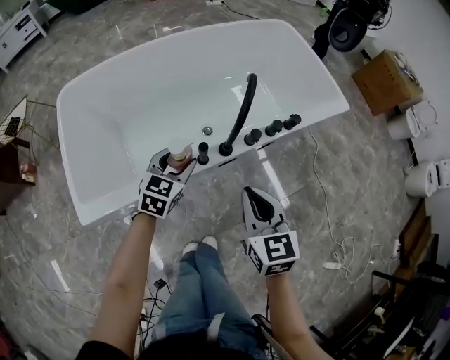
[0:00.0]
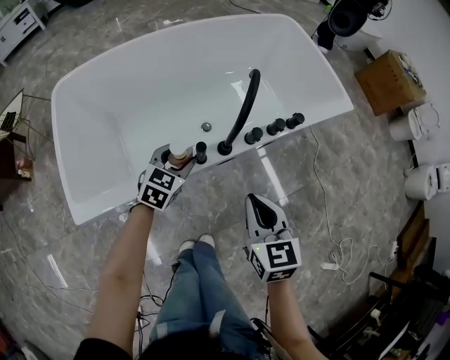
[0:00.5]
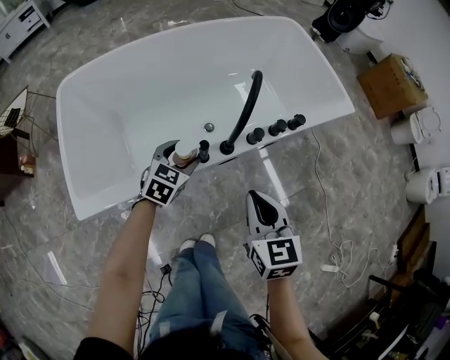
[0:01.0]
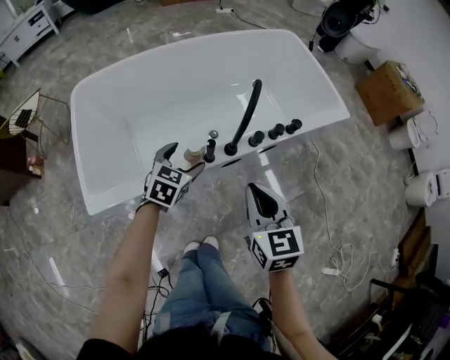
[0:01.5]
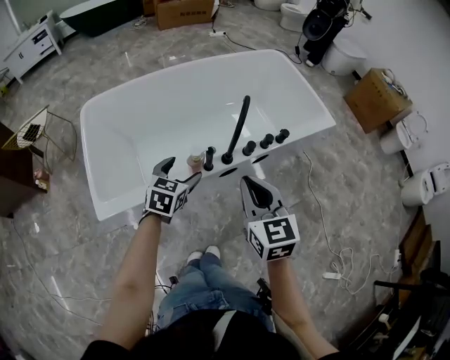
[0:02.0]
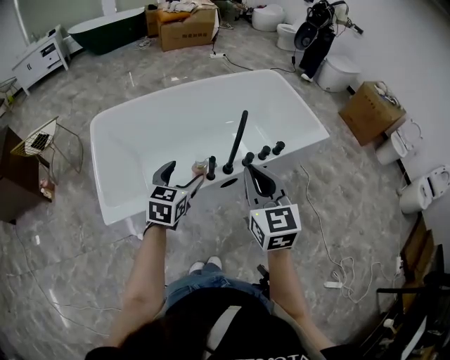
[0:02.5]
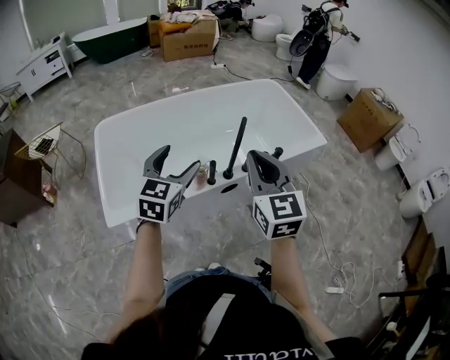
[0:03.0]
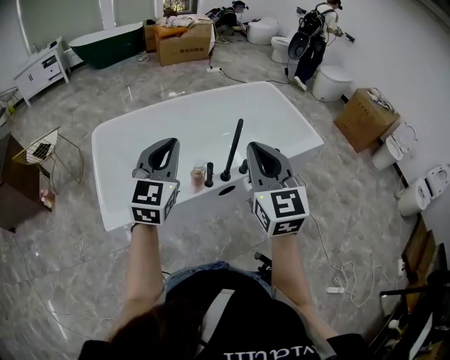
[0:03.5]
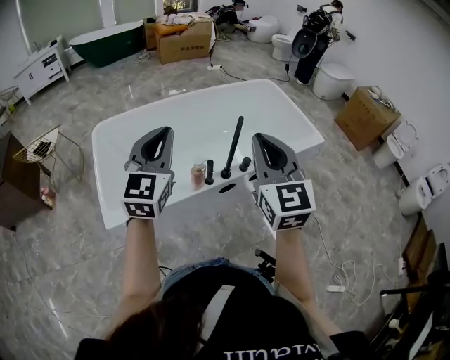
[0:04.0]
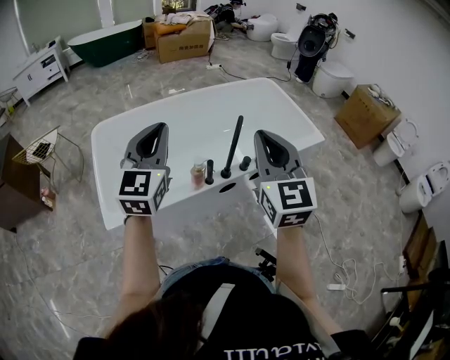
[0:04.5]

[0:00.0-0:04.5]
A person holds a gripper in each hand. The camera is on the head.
0:00.0 to 0:02.0: The right gripper shifts some 10 cm upward. Meanwhile the left gripper travels upward and backward by some 10 cm, and opens up.
0:02.0 to 0:04.5: The right gripper is displaced upward by about 20 cm, and turns by roughly 20 degrees, while the left gripper travels upward by roughly 30 cm, angles its fingers upward, by about 40 degrees, and closes up.

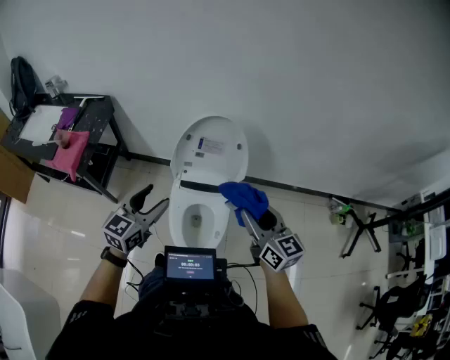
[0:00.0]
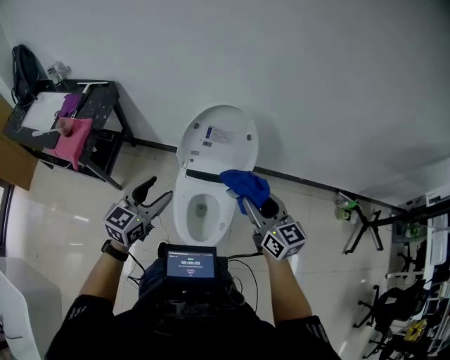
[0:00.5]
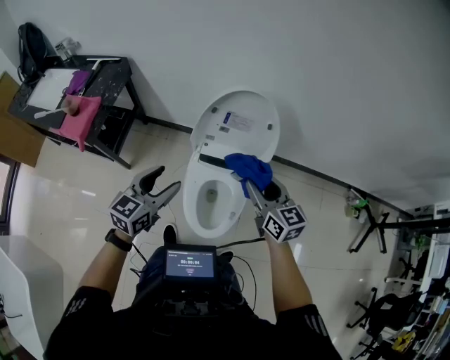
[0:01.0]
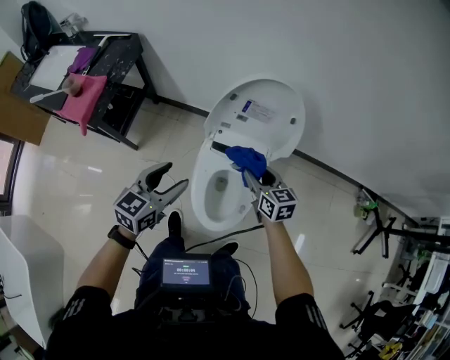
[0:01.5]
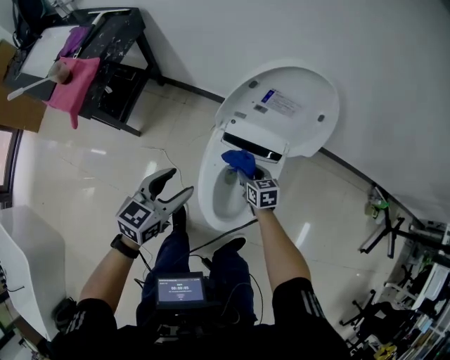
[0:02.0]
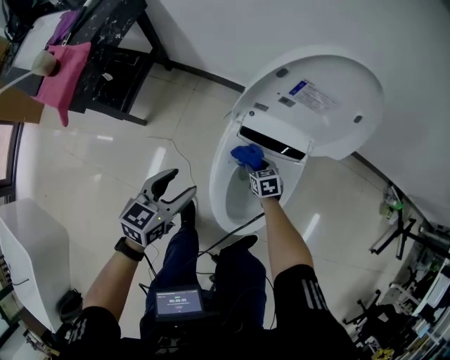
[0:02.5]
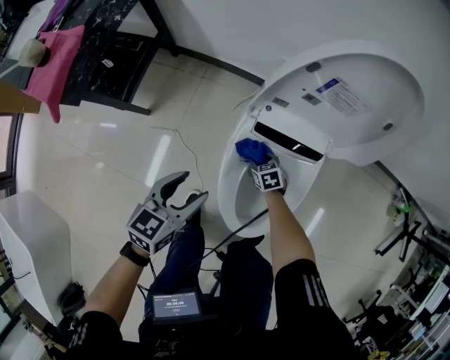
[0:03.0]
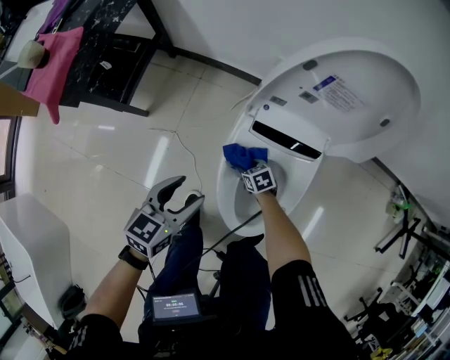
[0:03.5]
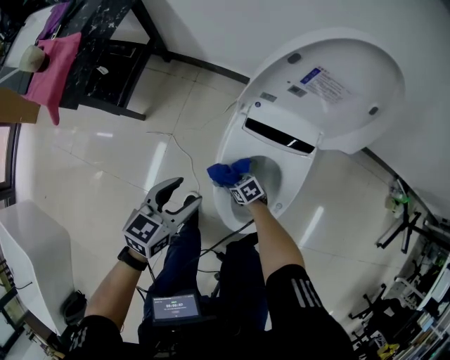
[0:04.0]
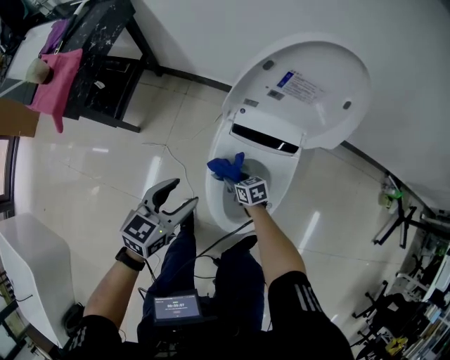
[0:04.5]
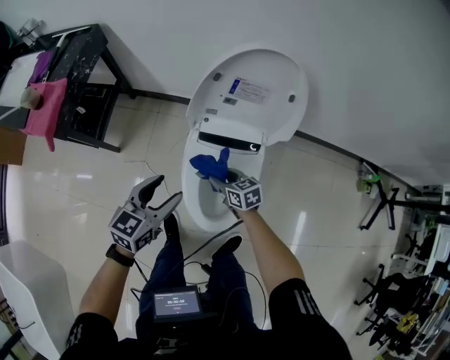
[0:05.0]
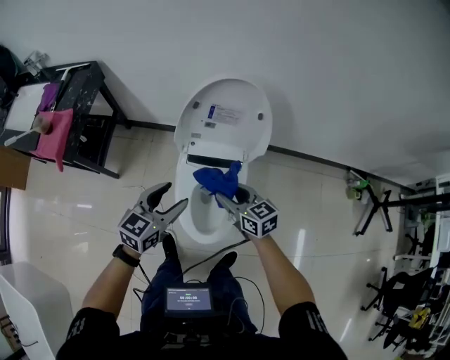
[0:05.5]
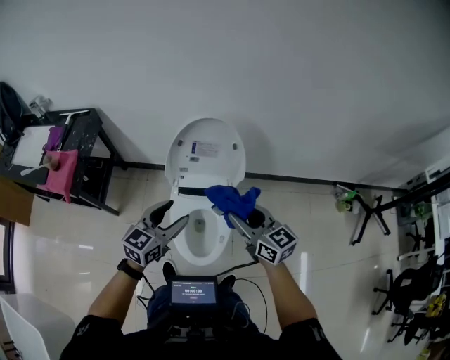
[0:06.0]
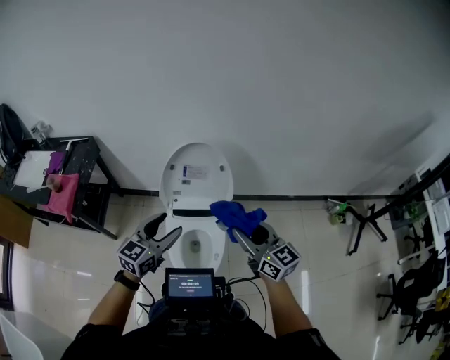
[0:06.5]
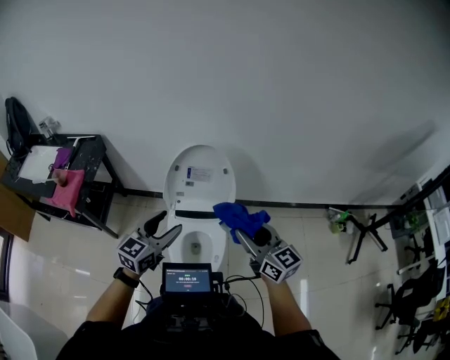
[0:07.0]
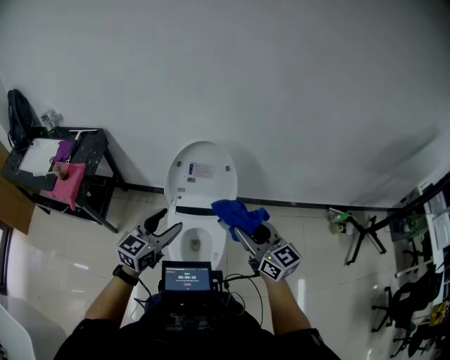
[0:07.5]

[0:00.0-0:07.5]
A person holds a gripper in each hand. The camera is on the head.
0:00.0 to 0:02.0: The right gripper goes roughly 50 cm downward, and tilts its fingers some 40 degrees downward; the left gripper heads downward, covering about 20 cm.
0:02.0 to 0:04.0: The right gripper goes some 25 cm downward, and swivels some 30 degrees, while the left gripper moves downward, approximately 15 cm.
0:04.0 to 0:05.5: The left gripper is displaced upward by some 20 cm. Meanwhile the right gripper shifts approximately 50 cm upward, and angles its fingers upward, by some 30 degrees.
0:05.5 to 0:07.5: The left gripper shifts some 15 cm upward. Meanwhile the right gripper is displaced upward and to the right by roughly 30 cm, and rotates about 30 degrees.

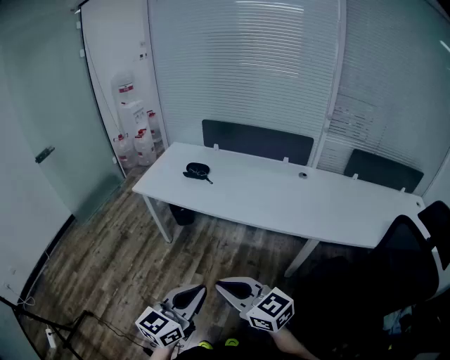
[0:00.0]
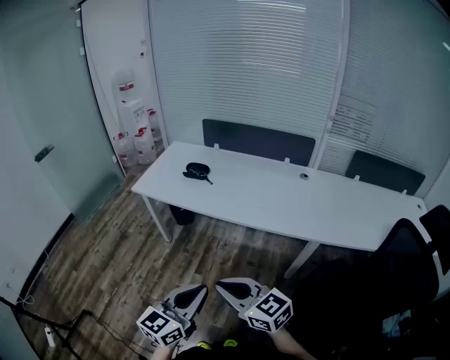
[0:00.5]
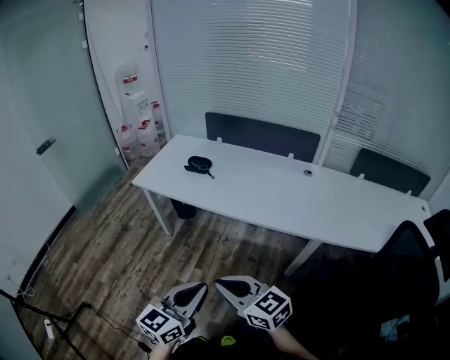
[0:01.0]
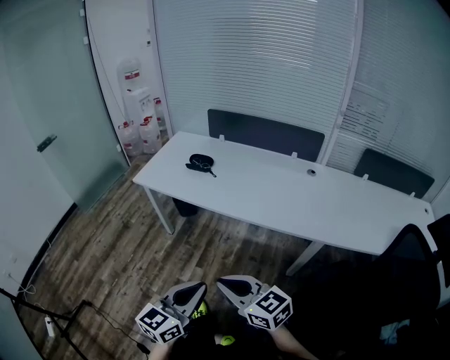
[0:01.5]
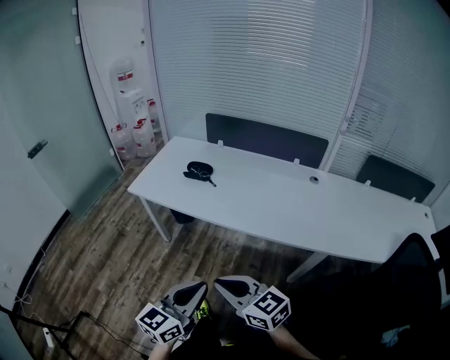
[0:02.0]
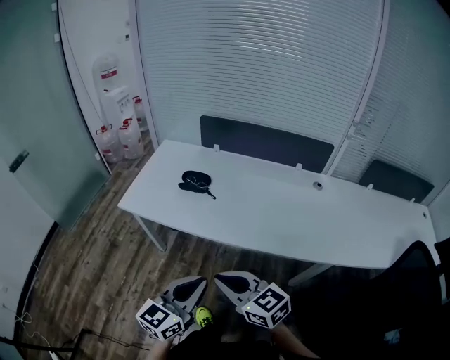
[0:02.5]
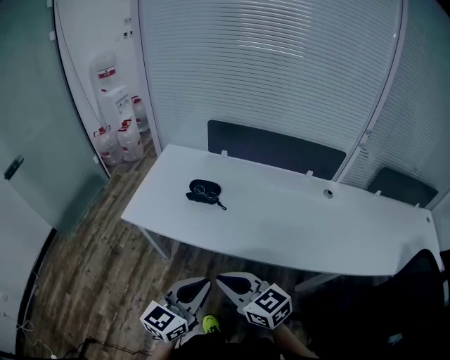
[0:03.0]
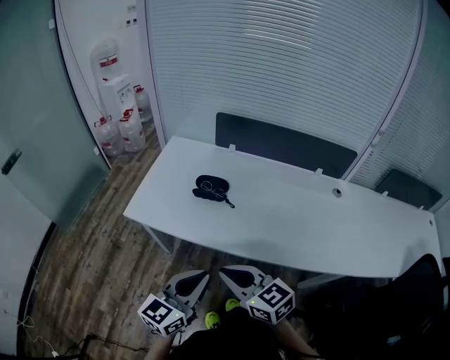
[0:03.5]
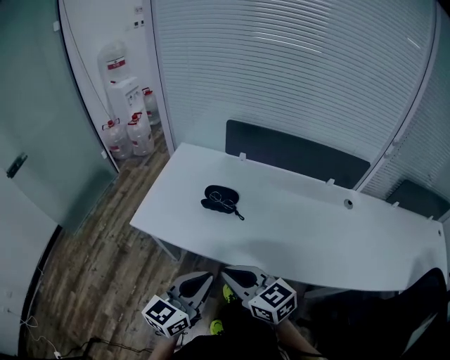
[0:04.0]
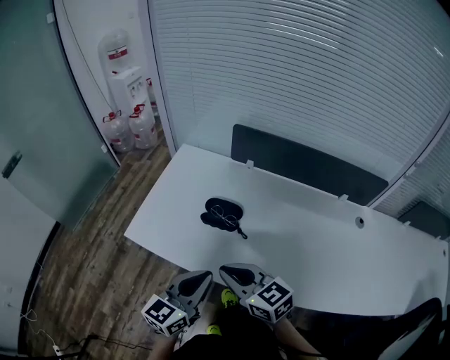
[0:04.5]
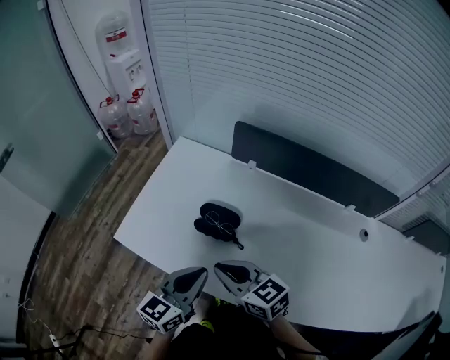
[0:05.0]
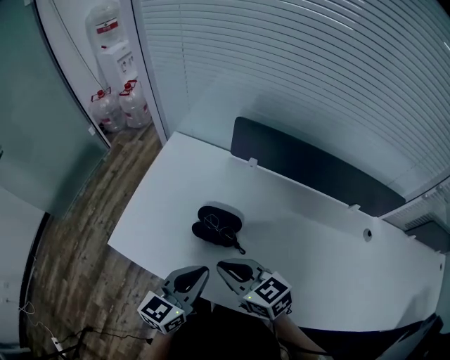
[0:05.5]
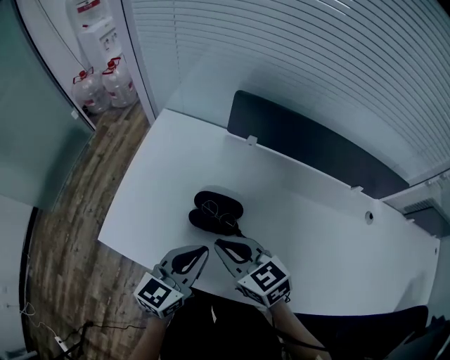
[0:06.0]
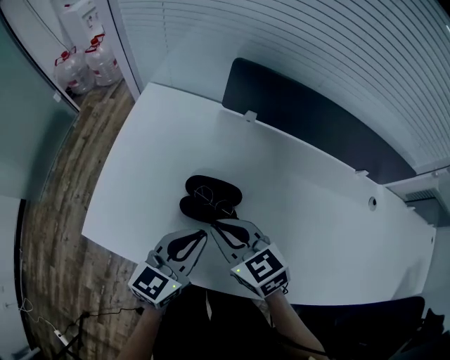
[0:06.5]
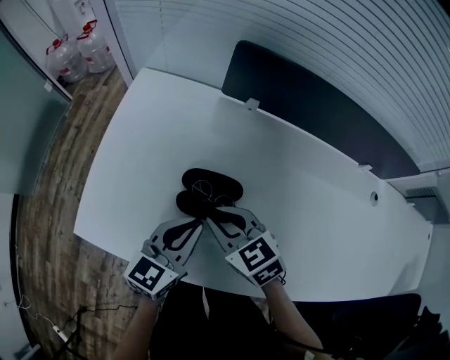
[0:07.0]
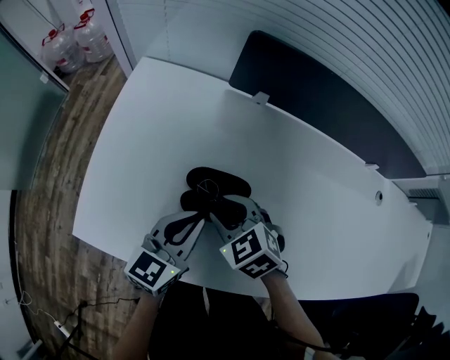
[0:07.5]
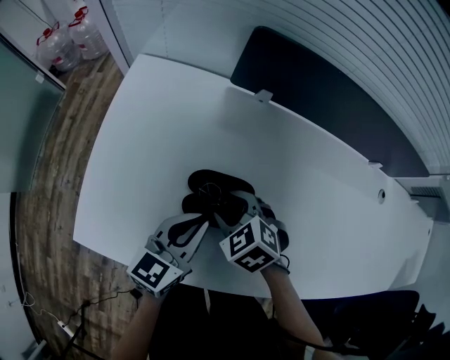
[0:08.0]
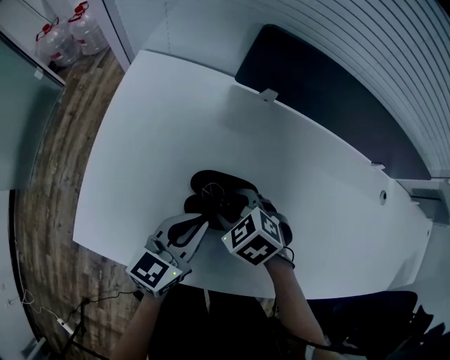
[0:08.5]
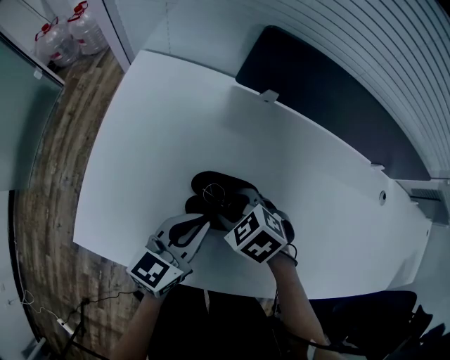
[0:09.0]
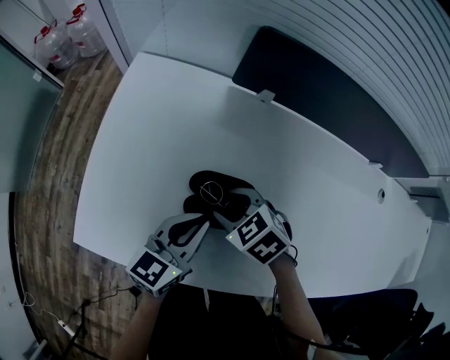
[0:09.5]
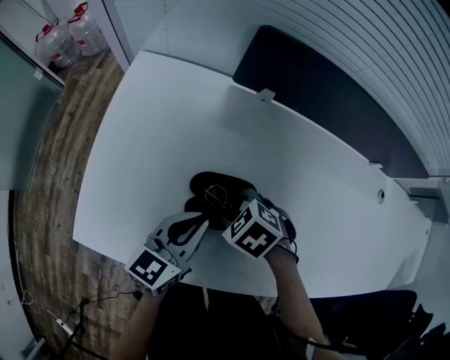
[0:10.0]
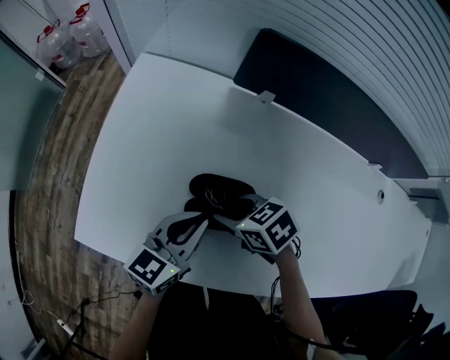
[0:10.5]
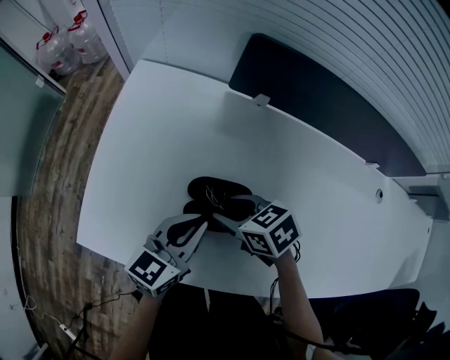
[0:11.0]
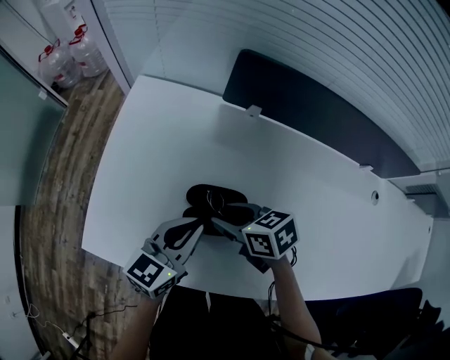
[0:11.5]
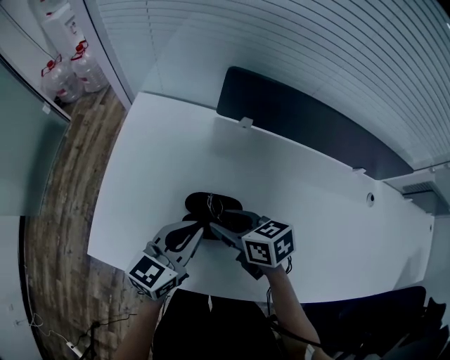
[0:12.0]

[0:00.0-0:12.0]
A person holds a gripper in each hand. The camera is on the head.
0:00.0 to 0:02.0: The two grippers go about 10 cm forward.
0:02.0 to 0:04.0: Both grippers move forward, approximately 30 cm.
0:04.0 to 0:06.0: Both grippers travel together forward, roughly 25 cm.
0:06.0 to 0:08.0: The right gripper shifts approximately 15 cm downward and forward, tilts its fingers about 30 degrees downward, and opens. The left gripper goes approximately 10 cm downward and forward.
0:08.0 to 0:10.0: The grippers make only small movements.
0:10.0 to 0:12.0: The right gripper shifts approximately 10 cm upward, and tilts its fingers approximately 40 degrees upward.

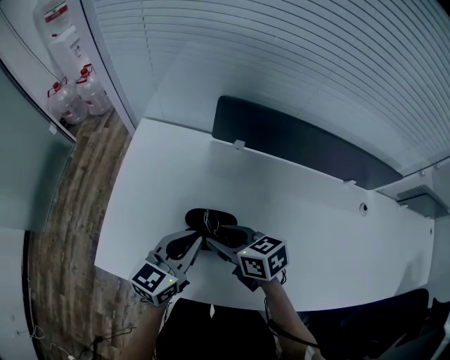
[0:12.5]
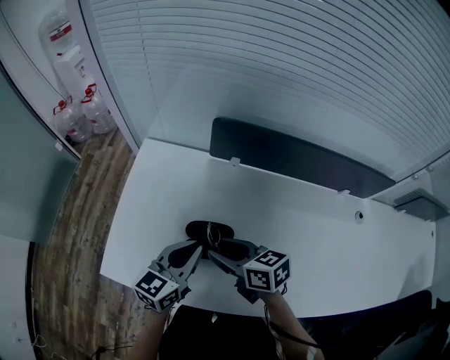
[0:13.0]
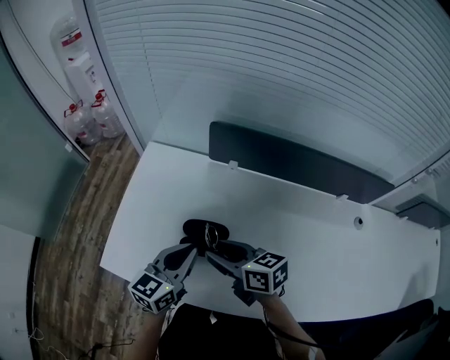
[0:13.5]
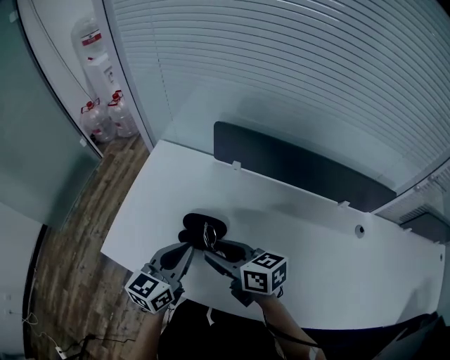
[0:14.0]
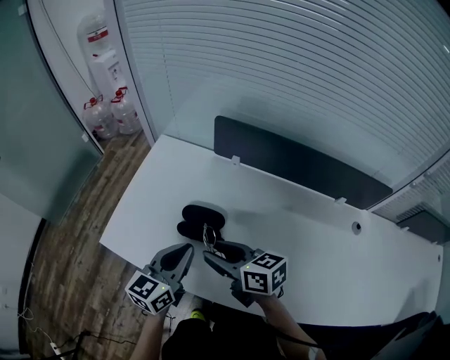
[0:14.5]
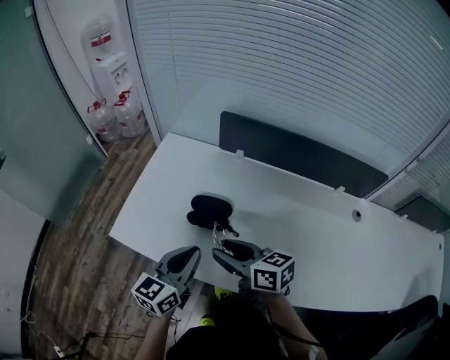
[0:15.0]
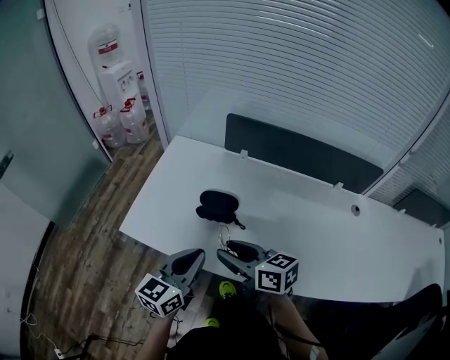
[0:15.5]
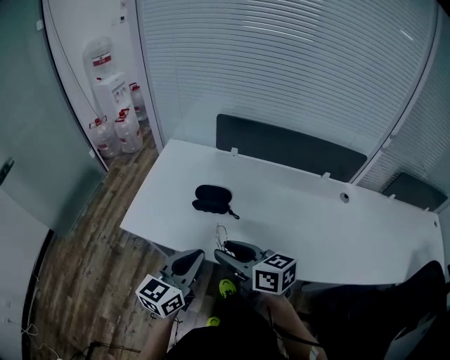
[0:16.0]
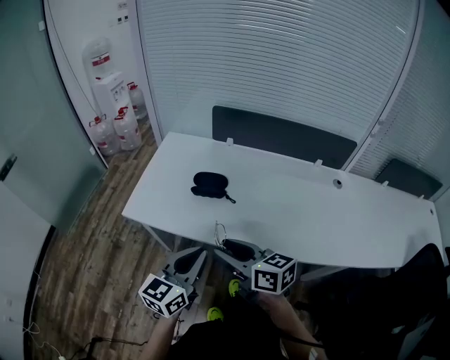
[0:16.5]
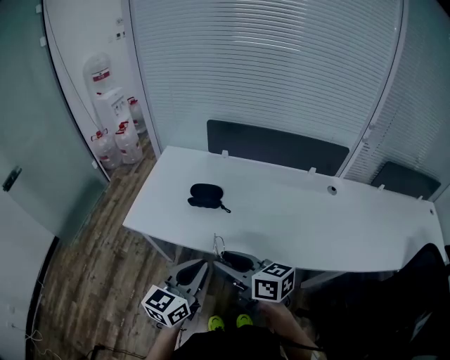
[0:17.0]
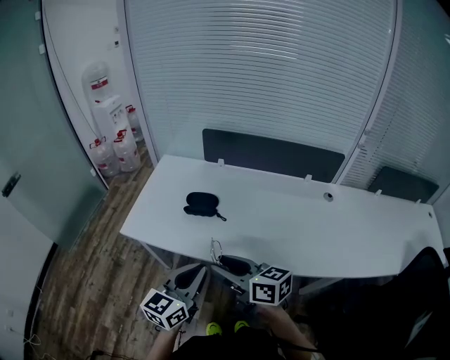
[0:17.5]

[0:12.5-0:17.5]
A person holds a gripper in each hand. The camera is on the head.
0:12.5 to 0:15.0: The left gripper heads backward, covering some 15 cm, while the right gripper goes about 15 cm backward and upward.
0:15.0 to 0:17.5: The two grippers go roughly 20 cm backward.
